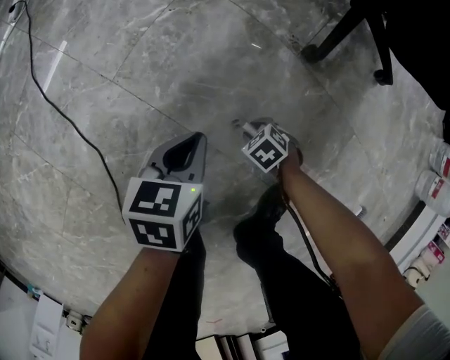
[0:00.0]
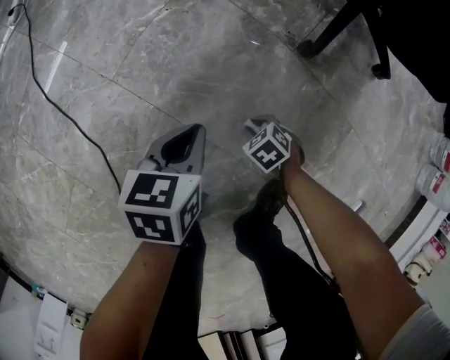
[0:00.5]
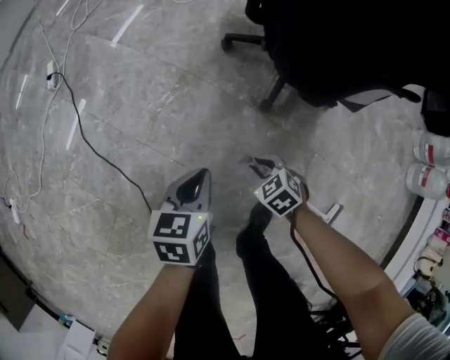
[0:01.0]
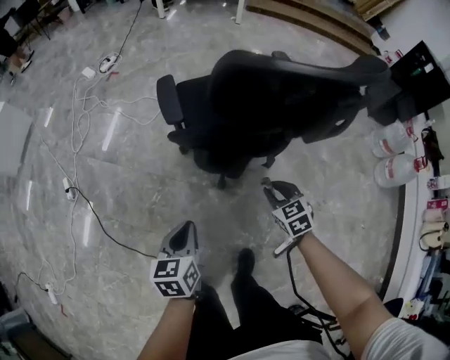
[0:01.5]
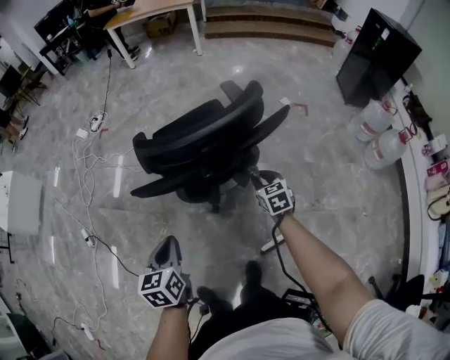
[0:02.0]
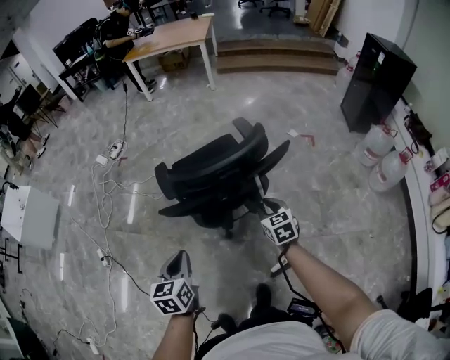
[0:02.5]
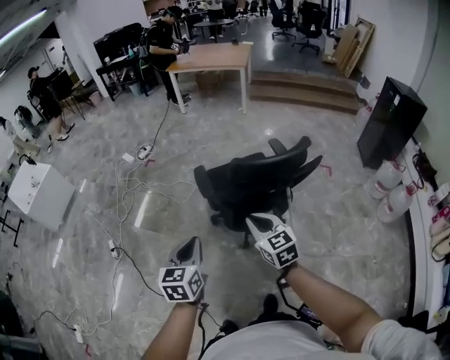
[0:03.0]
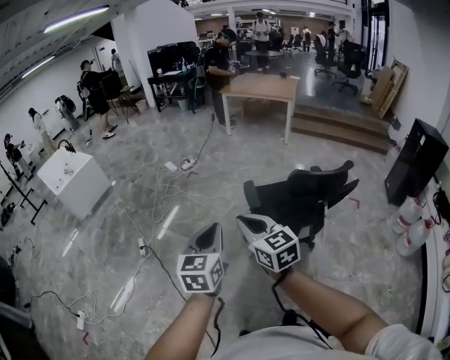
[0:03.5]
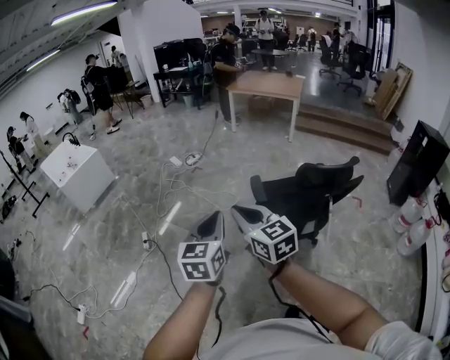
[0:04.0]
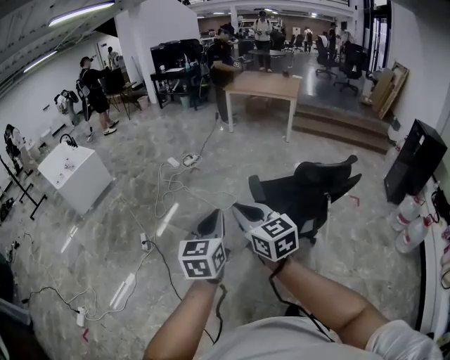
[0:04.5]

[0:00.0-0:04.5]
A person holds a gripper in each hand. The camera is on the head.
0:00.0 to 0:02.0: The two grippers go about 80 cm upward. The right gripper angles its fingers upward, by roughly 40 degrees, while the left gripper turns by roughly 20 degrees.
0:02.0 to 0:04.5: The left gripper is displaced to the left and upward by approximately 50 cm, and changes its angle by roughly 30 degrees, while the right gripper heads to the left and upward, covering about 80 cm, and tips its fingers upward by approximately 30 degrees.

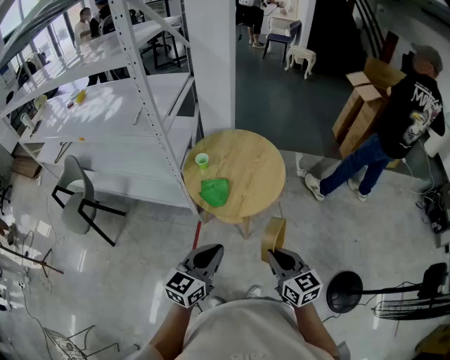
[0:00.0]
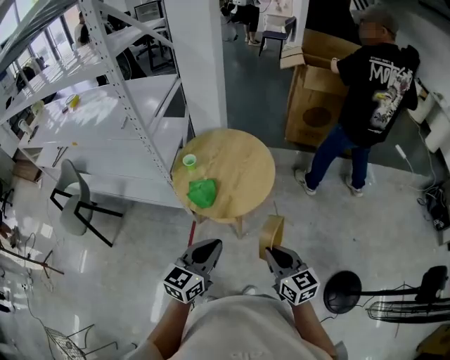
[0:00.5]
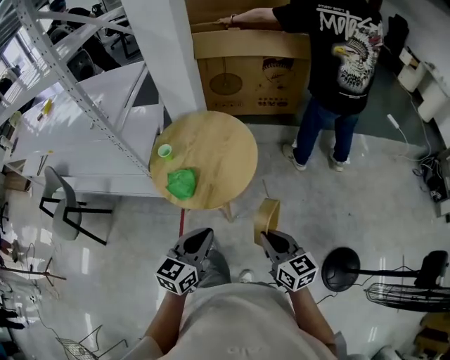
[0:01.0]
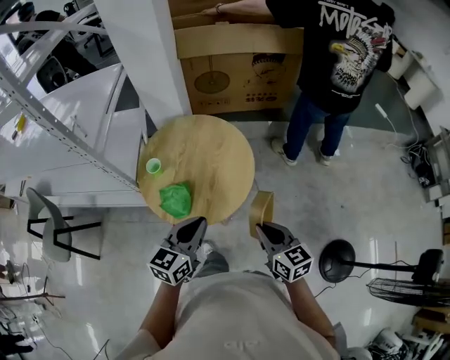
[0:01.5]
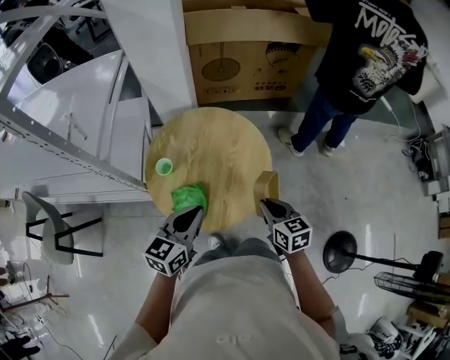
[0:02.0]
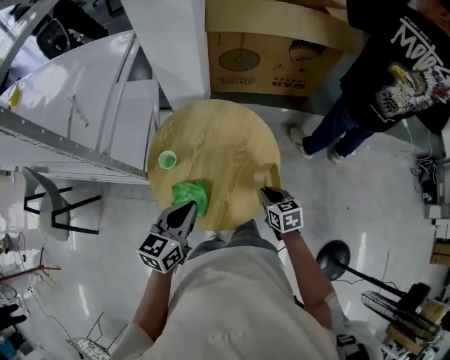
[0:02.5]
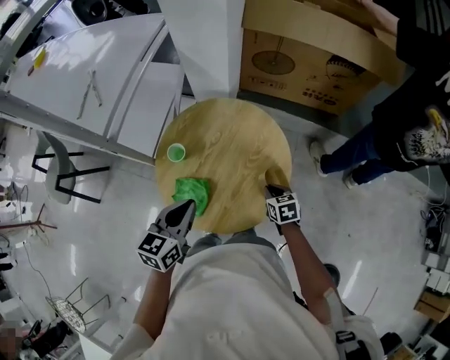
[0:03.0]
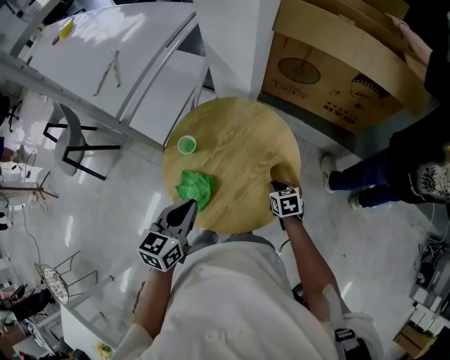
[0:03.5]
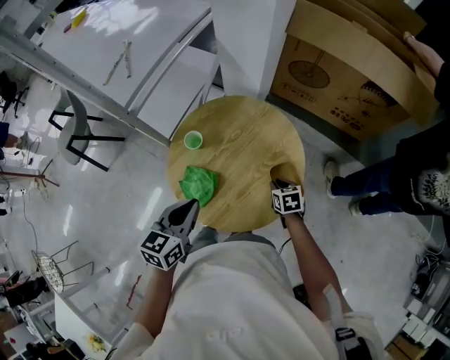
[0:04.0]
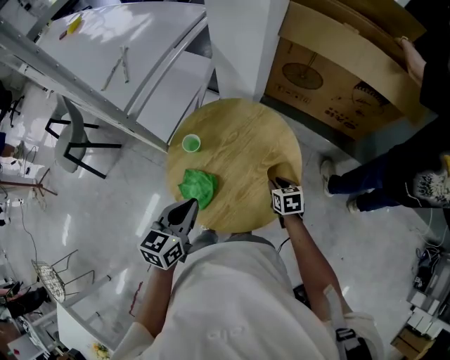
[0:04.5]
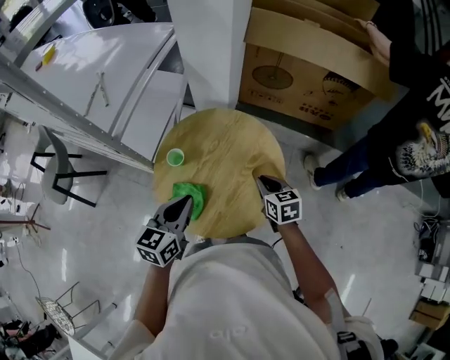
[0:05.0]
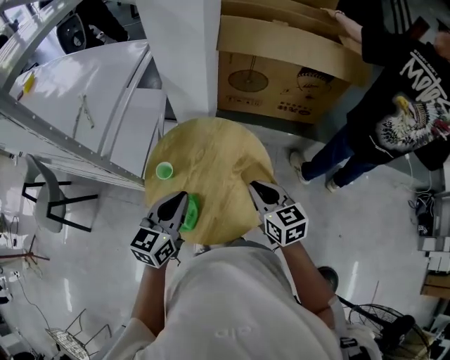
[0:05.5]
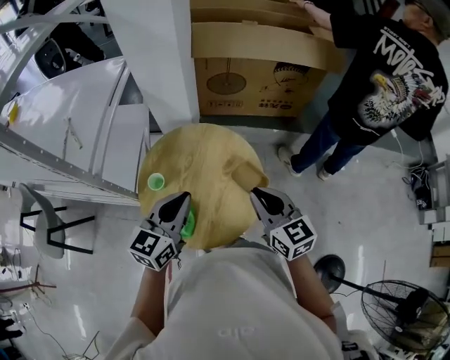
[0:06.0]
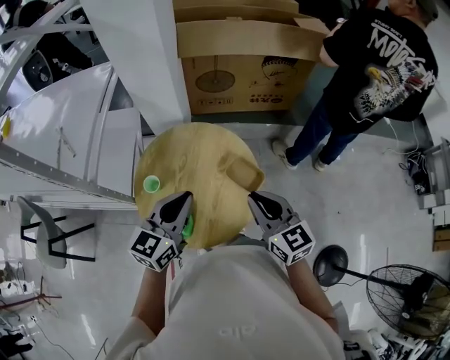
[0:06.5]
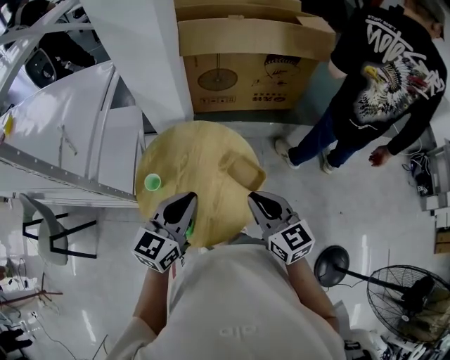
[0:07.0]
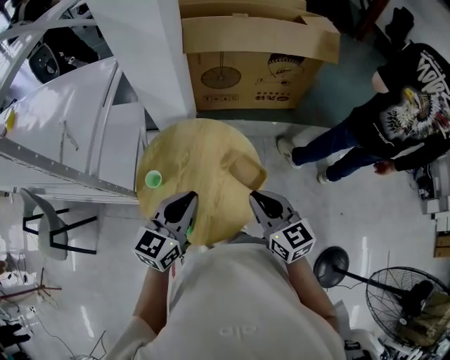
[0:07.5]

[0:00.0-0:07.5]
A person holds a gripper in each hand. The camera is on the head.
0:00.0 to 0:02.0: Both grippers travel together forward, approximately 30 cm. The right gripper rotates roughly 20 degrees.
0:02.0 to 0:04.0: The right gripper moves about 25 cm, and swivels some 40 degrees. The left gripper changes place by approximately 5 cm, and changes its angle by approximately 40 degrees.
0:04.0 to 0:05.5: The right gripper moves upward, some 25 cm, and angles its fingers upward, by roughly 30 degrees. Meanwhile the left gripper goes about 10 cm upward and forward, and rotates approximately 20 degrees.
0:05.5 to 0:07.5: The right gripper heads backward, covering approximately 5 cm; the left gripper moves to the right, about 5 cm.

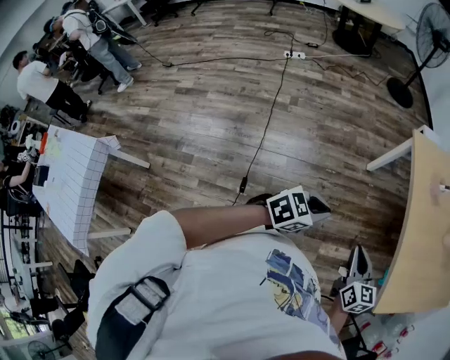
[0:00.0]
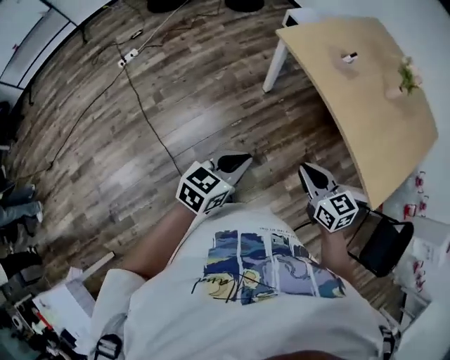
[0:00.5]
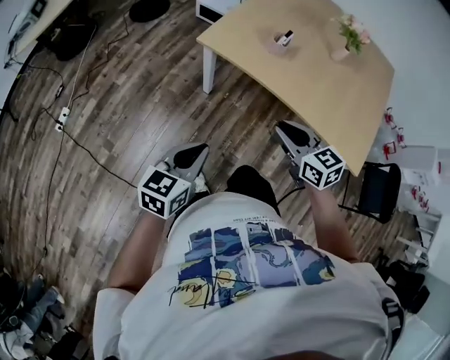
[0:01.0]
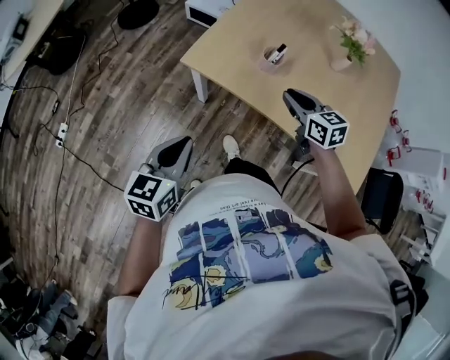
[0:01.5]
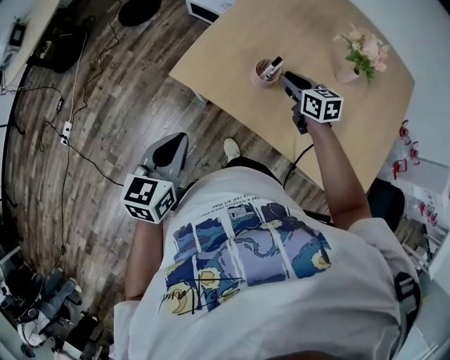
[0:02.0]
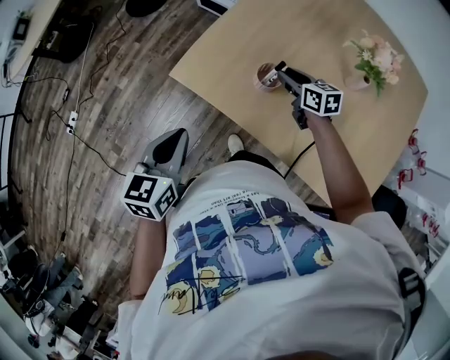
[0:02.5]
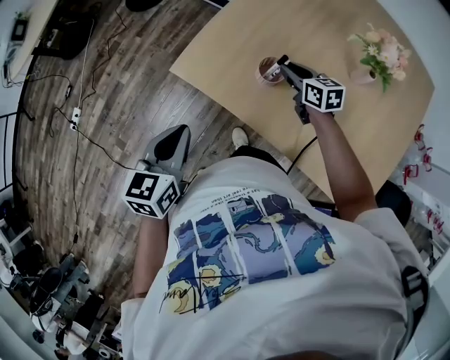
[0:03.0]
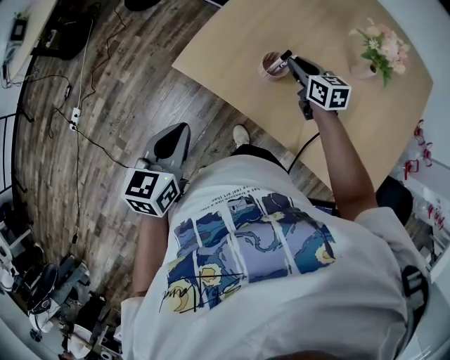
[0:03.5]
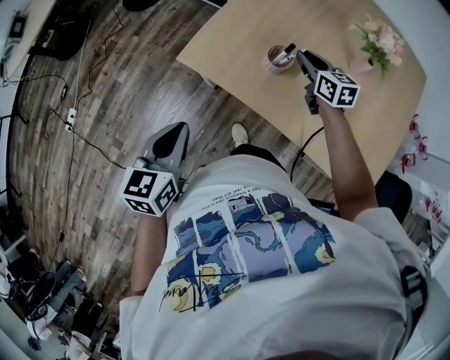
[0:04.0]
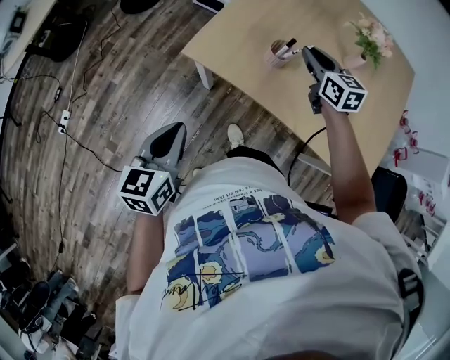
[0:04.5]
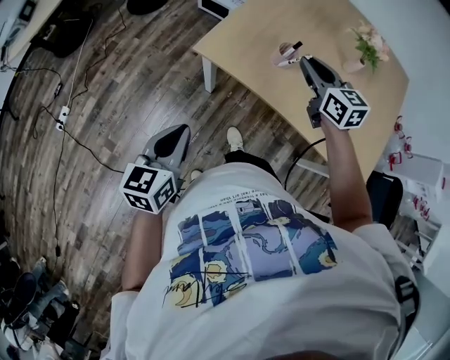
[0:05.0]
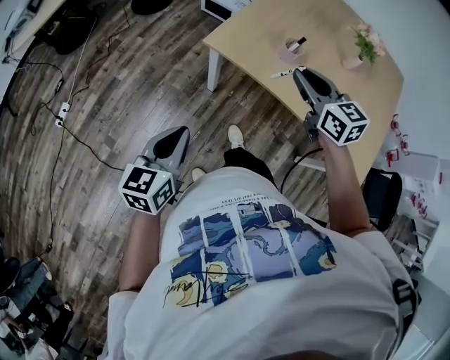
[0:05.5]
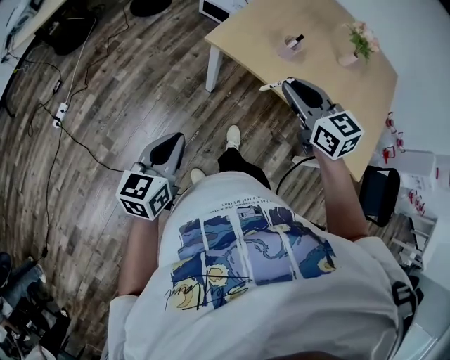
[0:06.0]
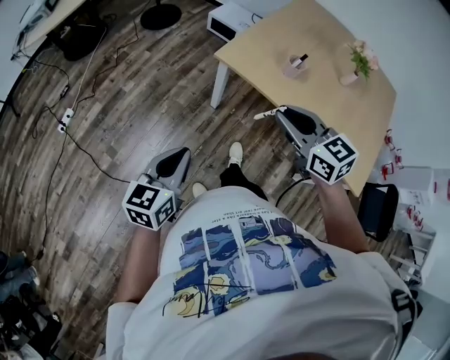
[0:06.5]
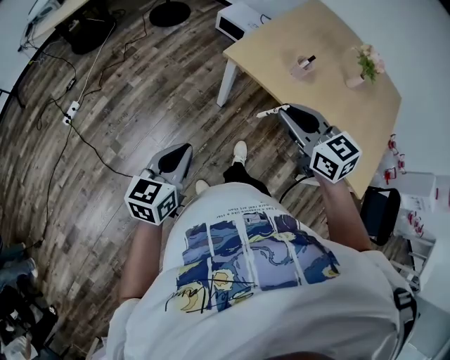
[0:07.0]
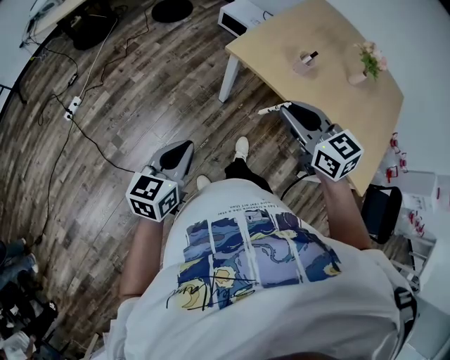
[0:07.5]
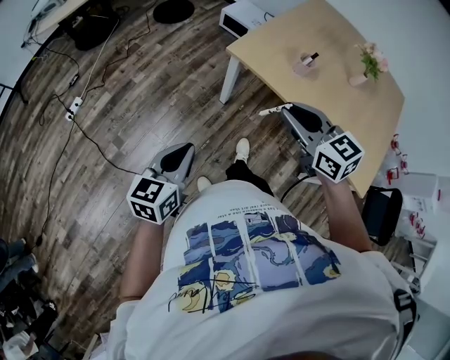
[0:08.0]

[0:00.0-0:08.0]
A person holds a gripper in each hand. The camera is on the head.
0:00.0 to 0:02.0: The two grippers travel together, forward, roughly 60 cm. The right gripper changes its angle by approximately 30 degrees.
0:02.0 to 0:04.0: The grippers move only a little.
0:04.0 to 0:06.0: The left gripper moves backward and to the left, roughly 25 cm; the right gripper moves backward, to the left and upward, roughly 40 cm, and changes its angle by some 20 degrees.
0:06.0 to 0:08.0: The right gripper shifts about 10 cm to the left and backward.

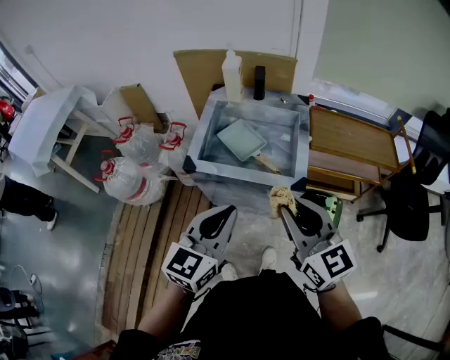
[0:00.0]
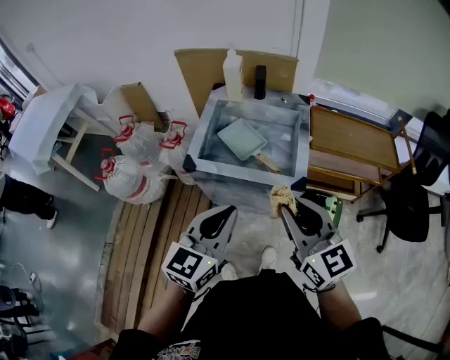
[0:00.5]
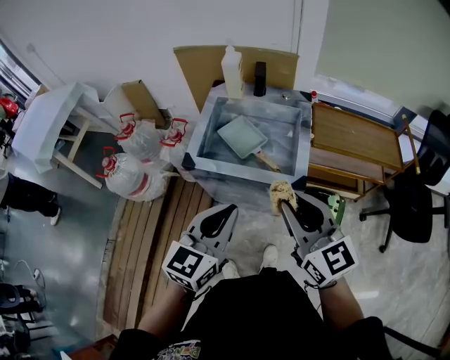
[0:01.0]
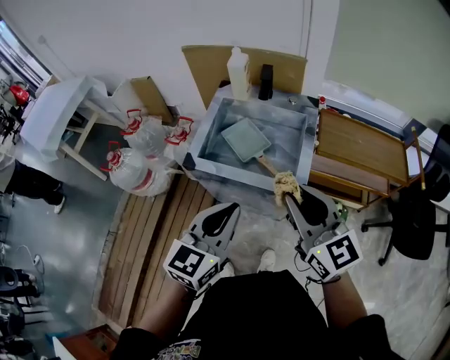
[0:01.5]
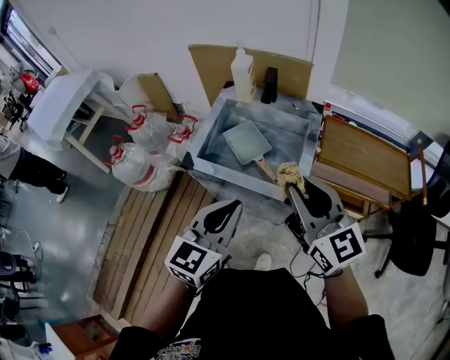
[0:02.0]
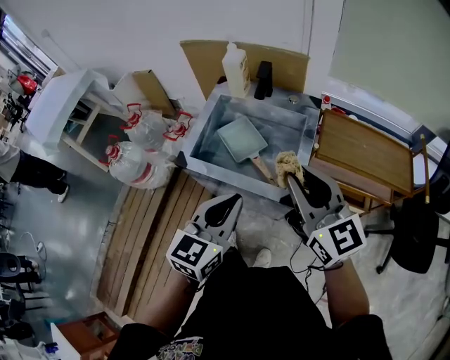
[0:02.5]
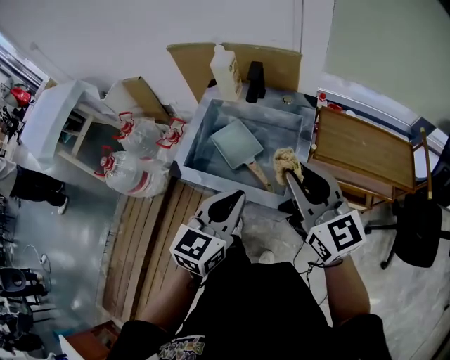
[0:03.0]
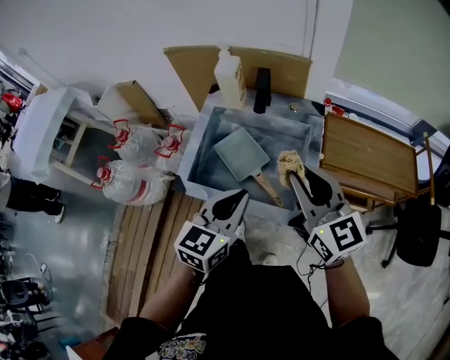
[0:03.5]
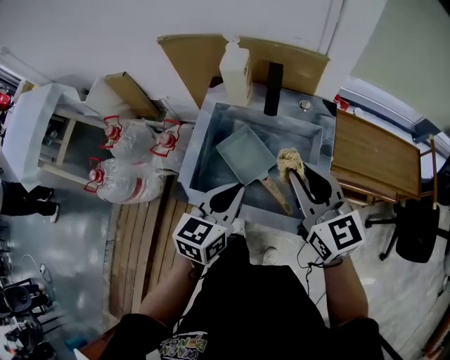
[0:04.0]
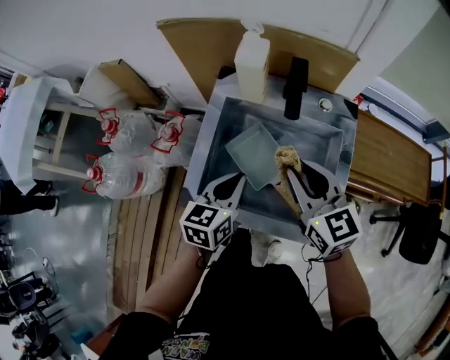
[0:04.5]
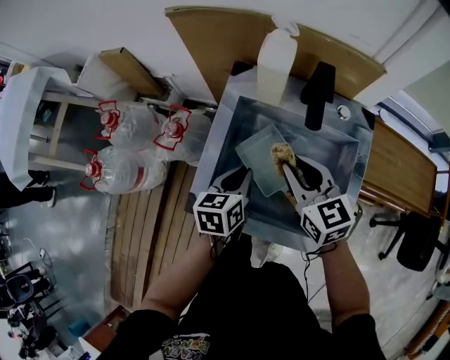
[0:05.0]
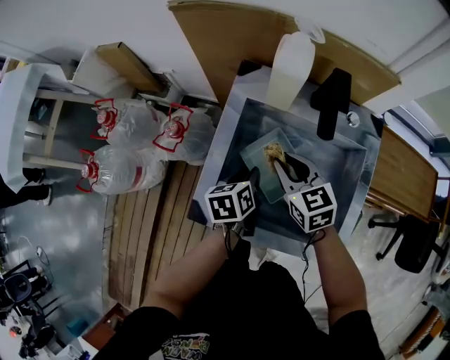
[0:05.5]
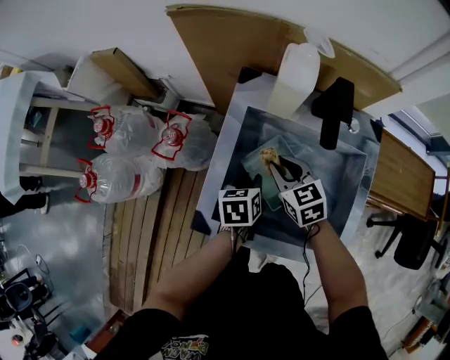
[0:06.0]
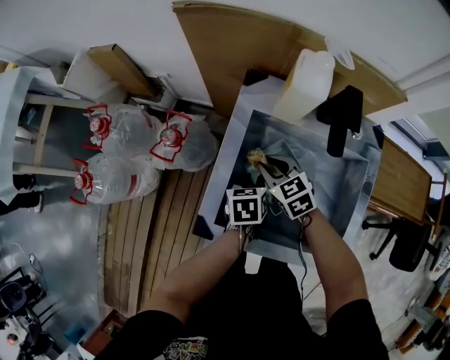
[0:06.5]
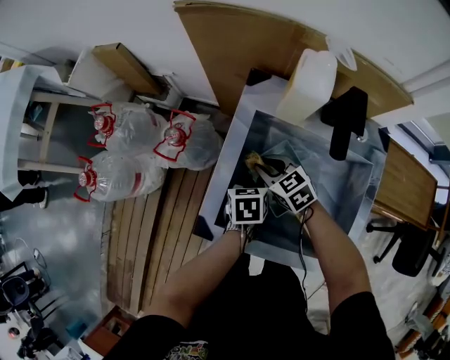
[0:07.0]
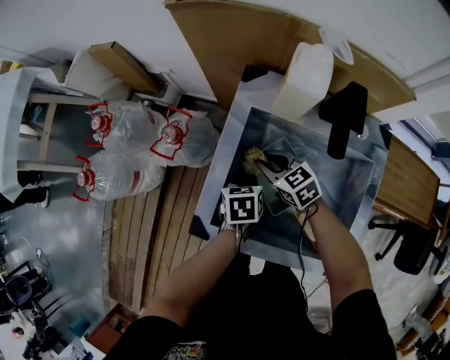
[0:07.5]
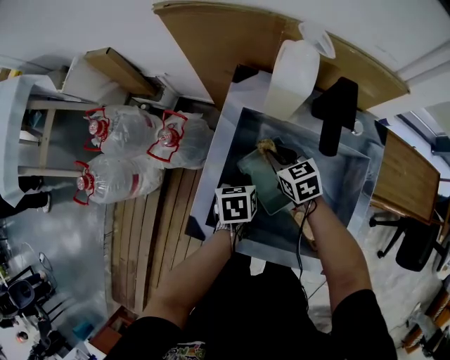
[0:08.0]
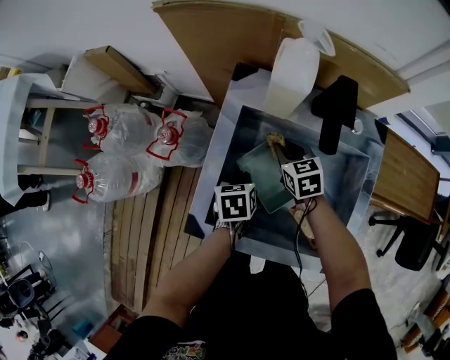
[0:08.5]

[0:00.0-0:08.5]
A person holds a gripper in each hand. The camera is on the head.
0:00.0 to 0:02.0: The right gripper goes roughly 10 cm forward and to the right; the left gripper shifts about 5 cm to the right.
0:02.0 to 0:04.0: The left gripper moves forward and downward, some 25 cm. Meanwhile the right gripper goes about 20 cm forward.
0:04.0 to 0:06.5: The left gripper moves downward and forward, some 30 cm, points its fingers some 30 degrees further downward, and opens up. The right gripper heads downward, forward and to the left, covering approximately 40 cm, and points its fingers approximately 30 degrees further downward.
0:06.5 to 0:08.5: The right gripper travels to the right by roughly 10 cm.
